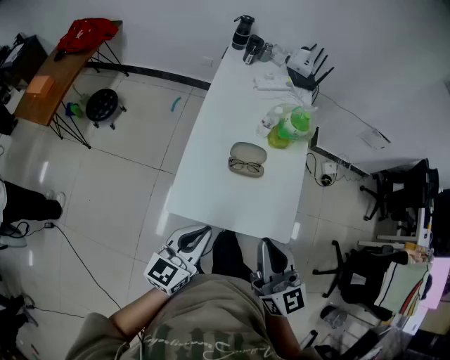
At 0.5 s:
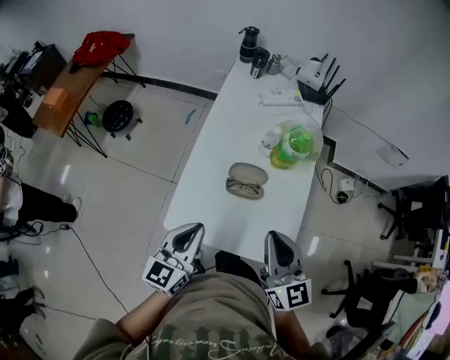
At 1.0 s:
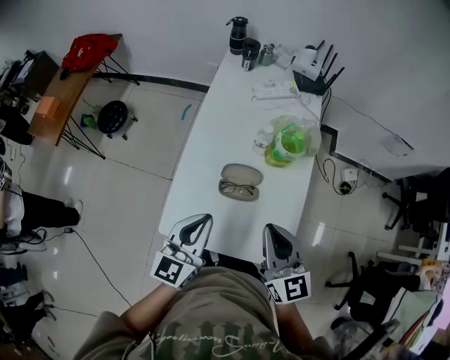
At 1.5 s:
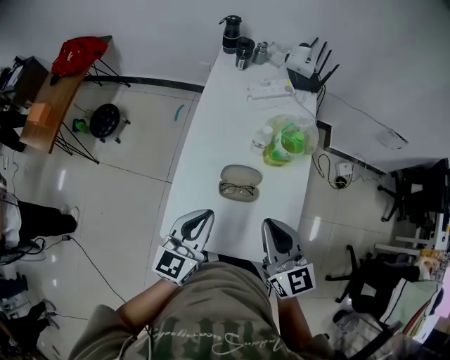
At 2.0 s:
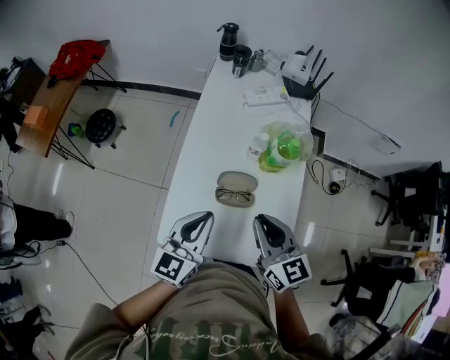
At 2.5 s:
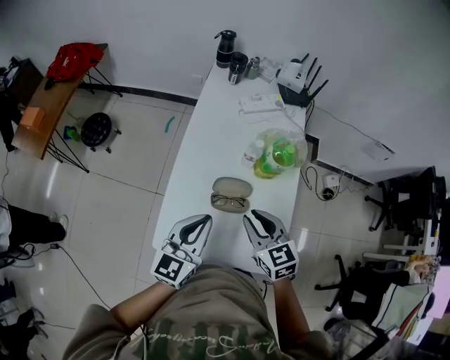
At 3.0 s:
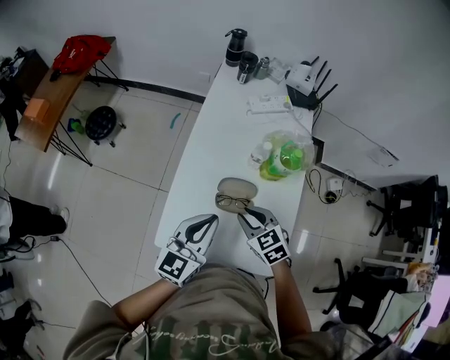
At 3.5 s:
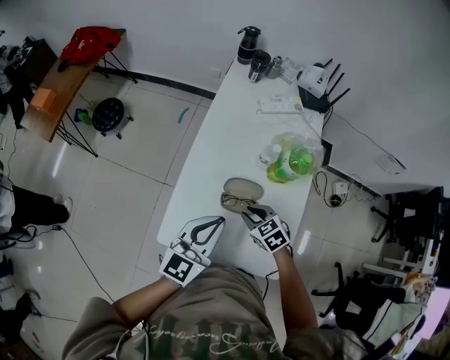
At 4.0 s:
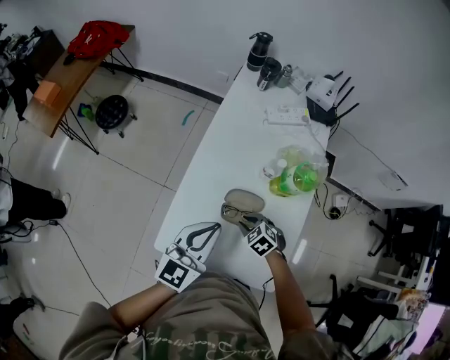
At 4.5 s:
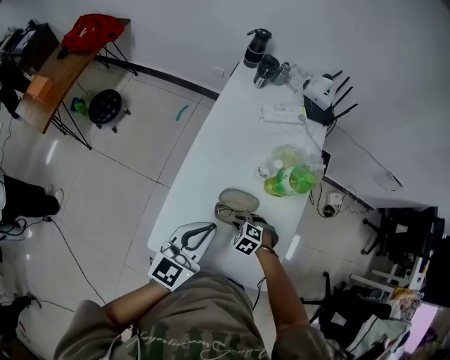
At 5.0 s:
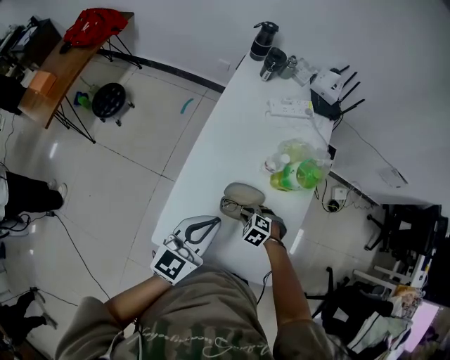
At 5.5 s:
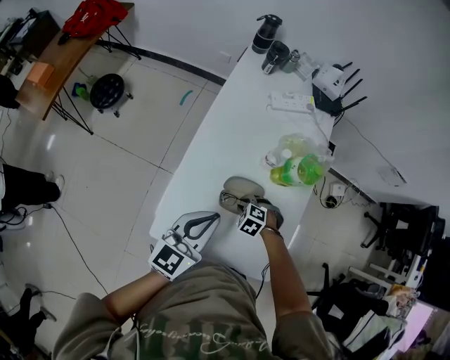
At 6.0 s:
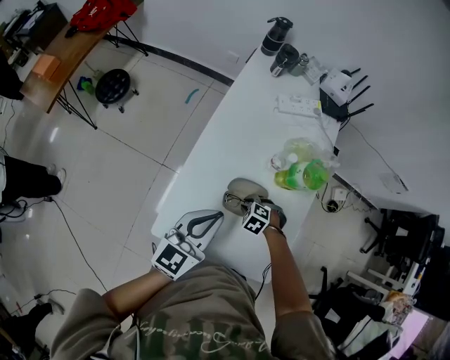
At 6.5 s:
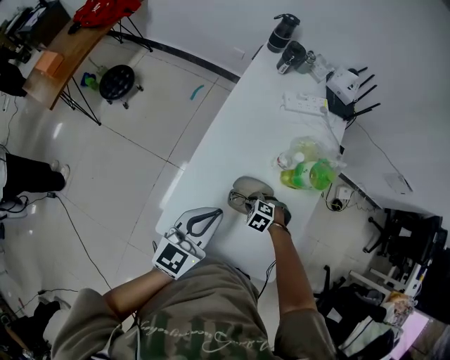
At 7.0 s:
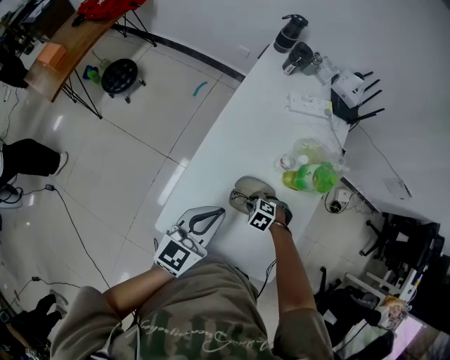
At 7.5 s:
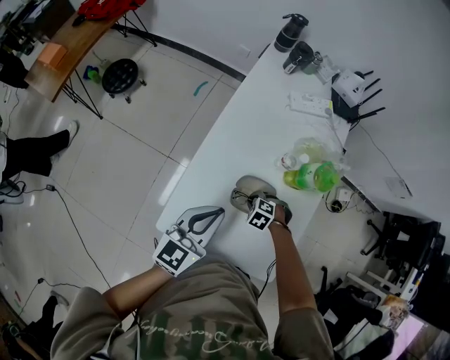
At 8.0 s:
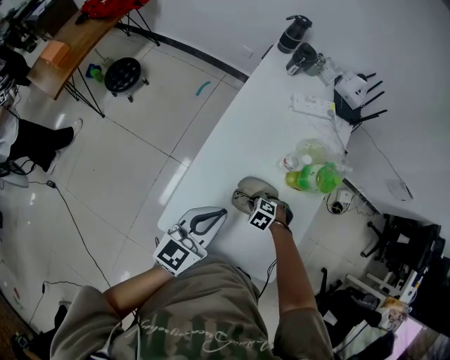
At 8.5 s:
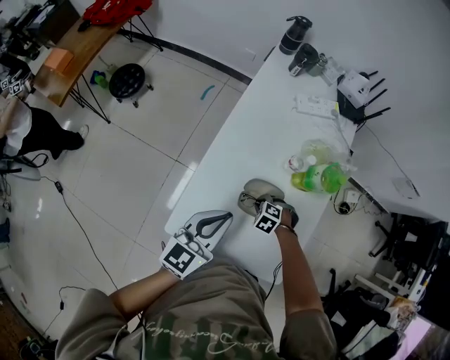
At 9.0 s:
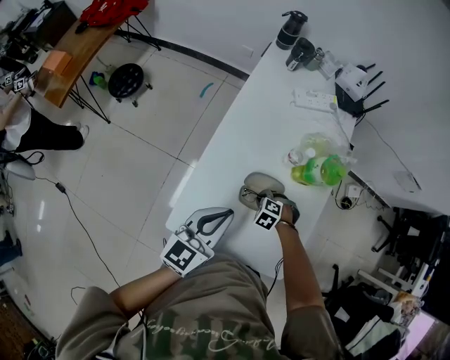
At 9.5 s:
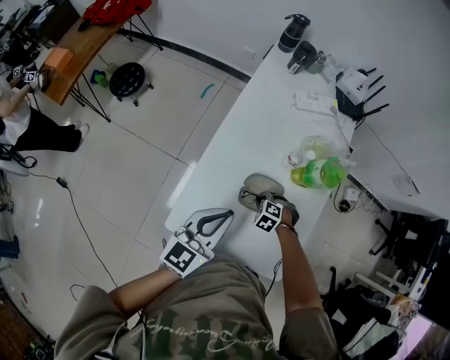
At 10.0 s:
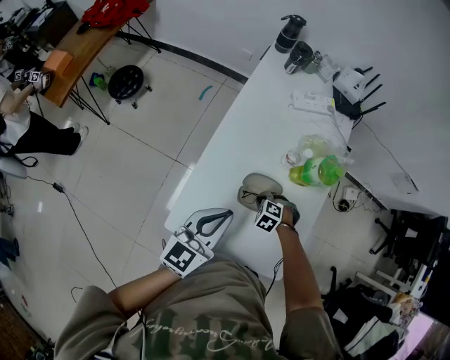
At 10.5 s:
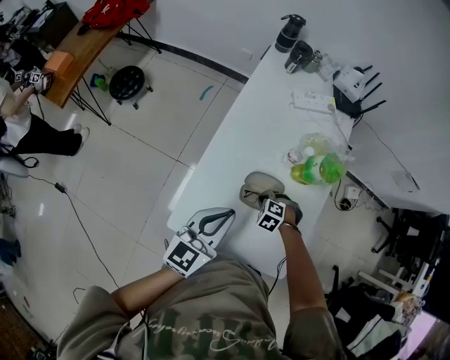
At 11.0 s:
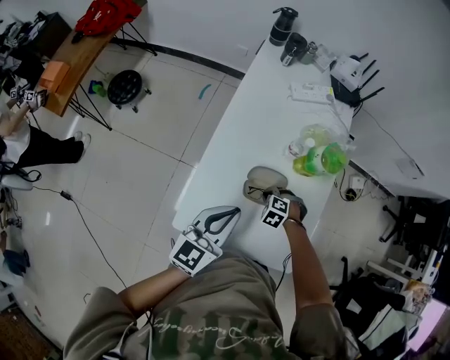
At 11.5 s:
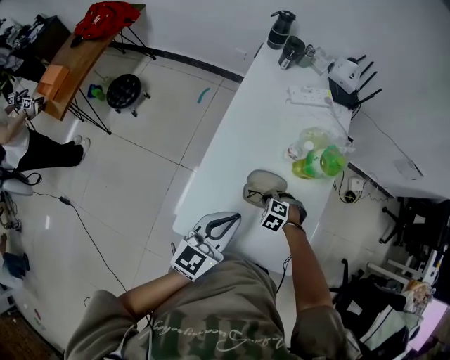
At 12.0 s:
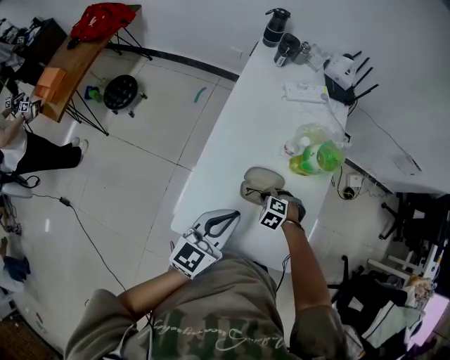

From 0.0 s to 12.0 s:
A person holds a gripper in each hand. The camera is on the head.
From 0.0 s to 2.0 s: The grippers both shift forward by about 20 cm.
From 2.0 s to 4.0 s: The right gripper travels downward by roughly 25 cm, and tilts its fingers about 50 degrees downward.
From 4.0 s to 6.0 s: The right gripper shifts about 5 cm downward, and turns by about 20 degrees.
From 6.0 s to 12.0 s: The grippers stay close to where they were, moving slightly.

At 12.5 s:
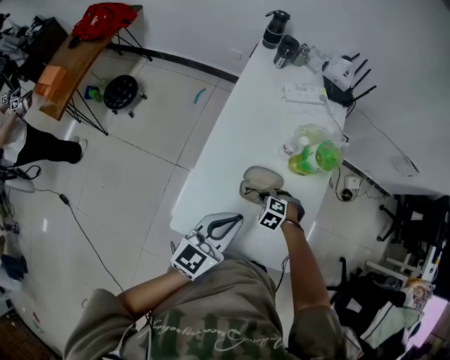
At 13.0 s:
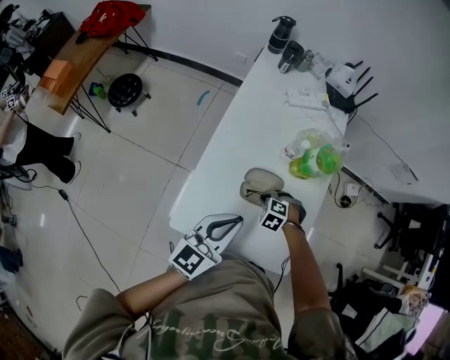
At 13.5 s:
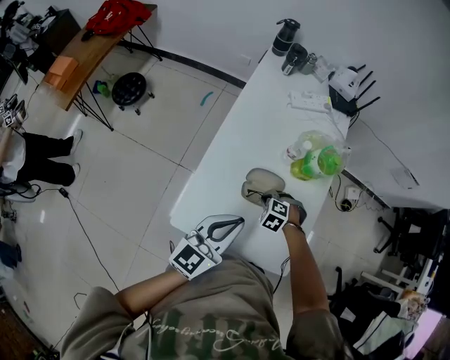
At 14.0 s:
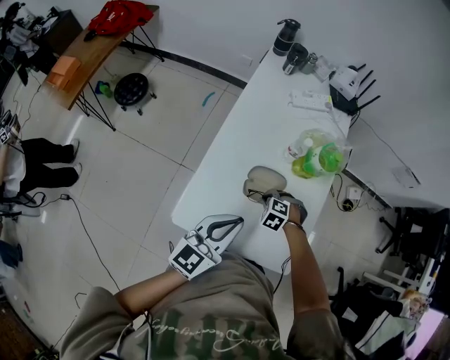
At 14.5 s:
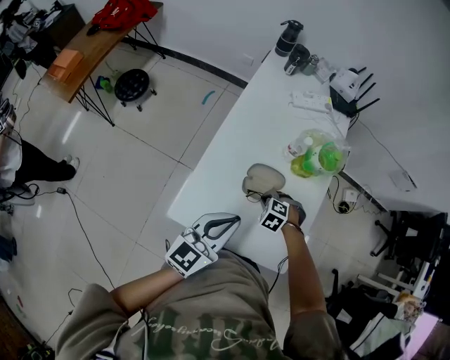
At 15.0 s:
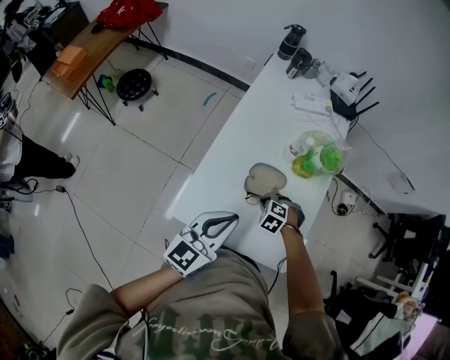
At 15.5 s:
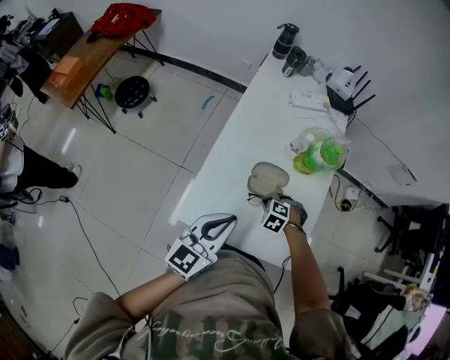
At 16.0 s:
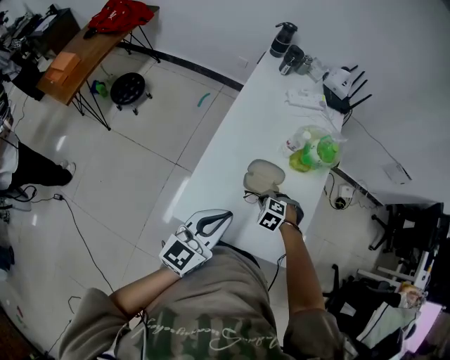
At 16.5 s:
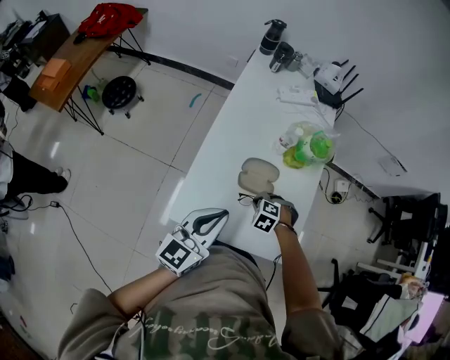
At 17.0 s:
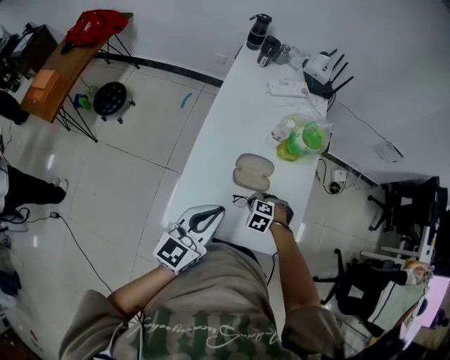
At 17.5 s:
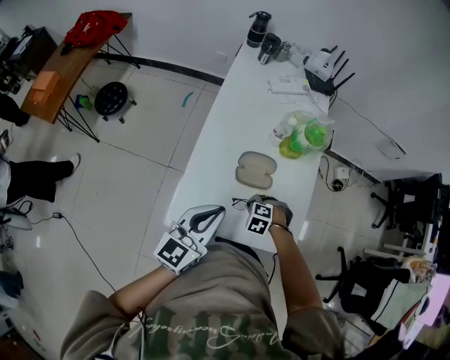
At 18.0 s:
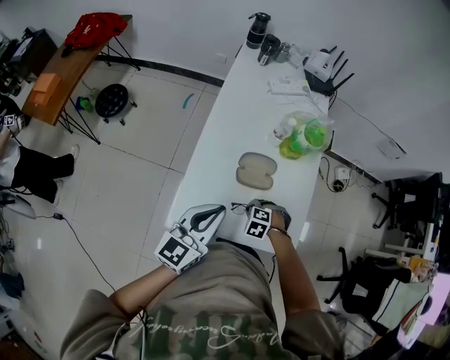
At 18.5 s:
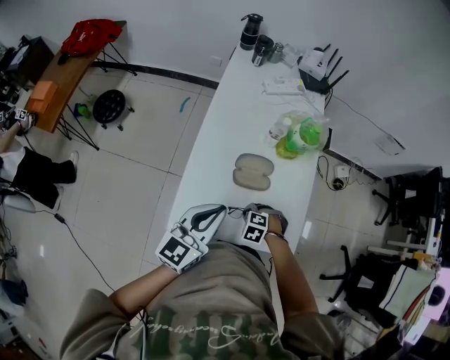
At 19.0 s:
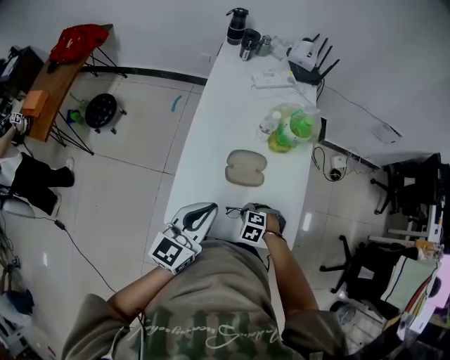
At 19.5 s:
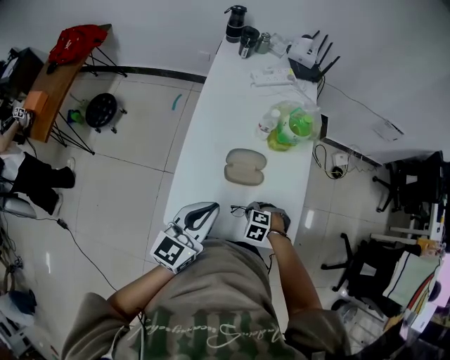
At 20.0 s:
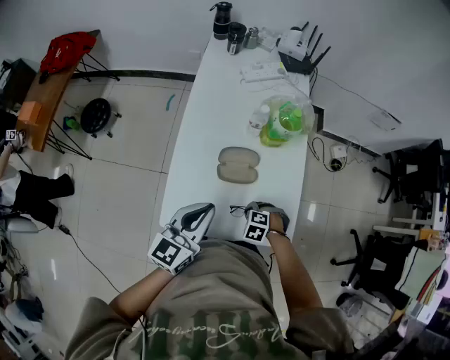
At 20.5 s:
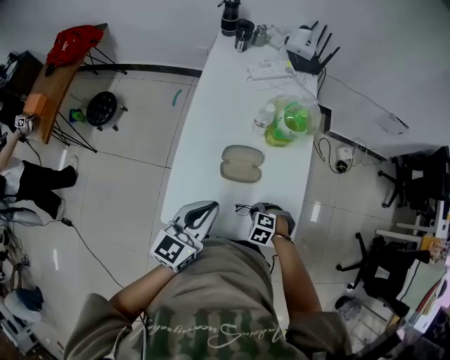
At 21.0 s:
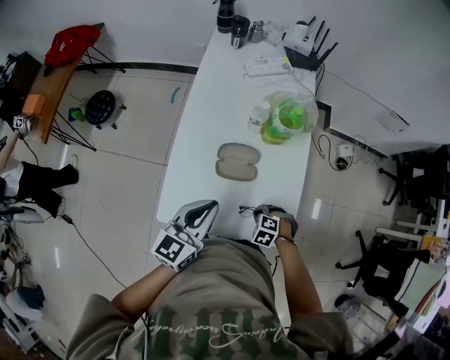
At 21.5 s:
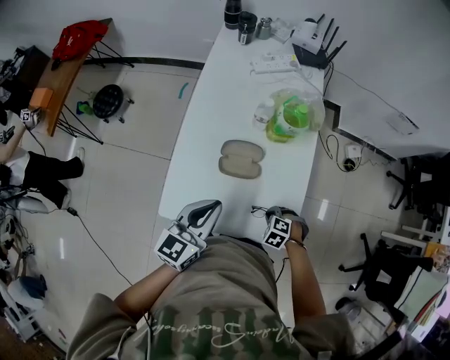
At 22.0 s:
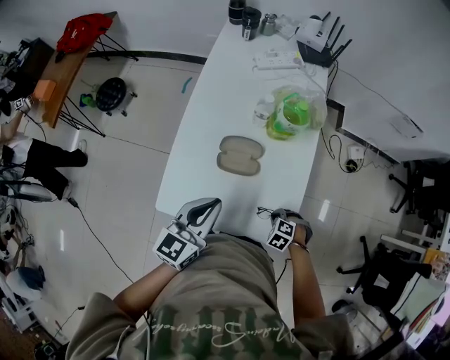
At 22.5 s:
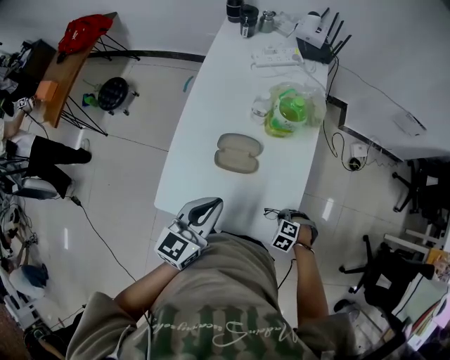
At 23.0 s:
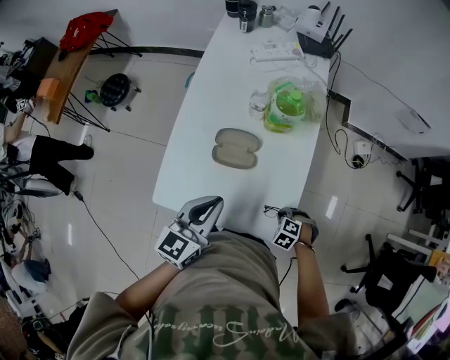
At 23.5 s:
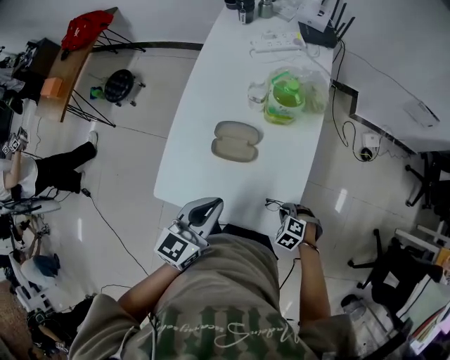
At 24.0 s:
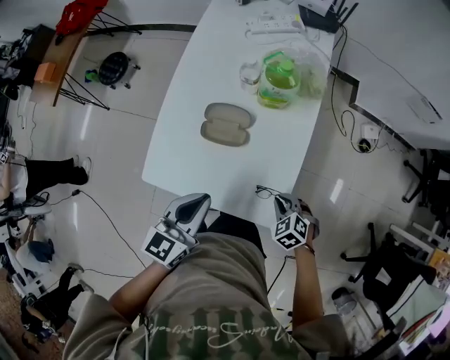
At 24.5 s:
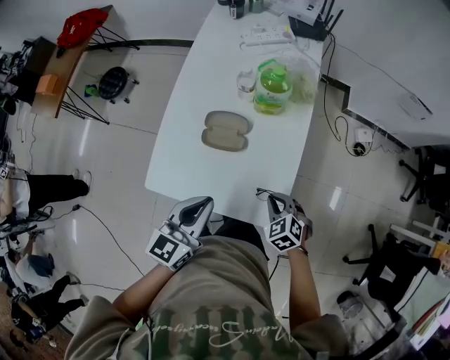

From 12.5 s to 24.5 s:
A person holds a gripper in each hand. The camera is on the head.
From 12.5 s to 14.5 s: The grippers make only small movements.
From 14.5 s to 16.5 s: The right gripper ends up some 5 cm from where it was.
From 16.5 s to 18.5 s: The right gripper changes place by some 5 cm.
From 18.5 s to 20.5 s: The left gripper changes place by about 5 cm. The right gripper shifts by roughly 5 cm.
From 20.5 s to 22.5 s: The left gripper shifts by about 5 cm. The right gripper shifts by approximately 15 cm.
From 22.5 s to 24.5 s: The right gripper moves upward, approximately 10 cm, and turns by about 40 degrees; the left gripper moves some 5 cm.

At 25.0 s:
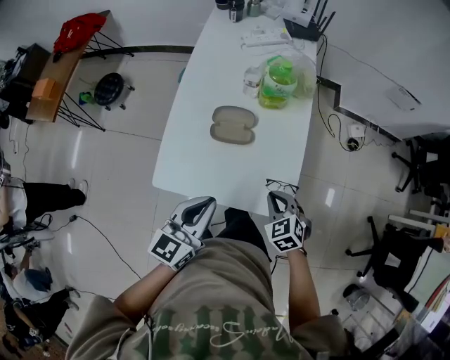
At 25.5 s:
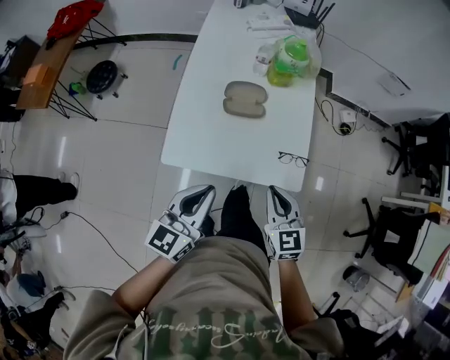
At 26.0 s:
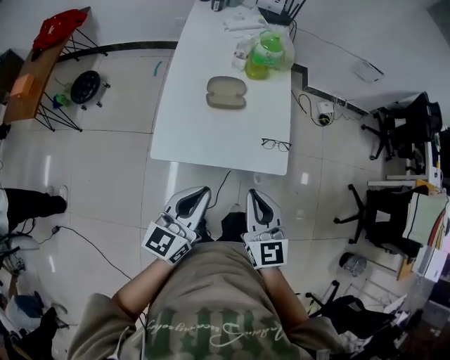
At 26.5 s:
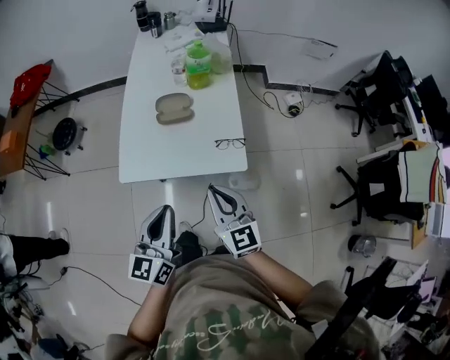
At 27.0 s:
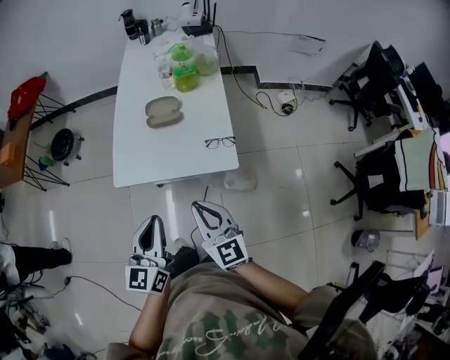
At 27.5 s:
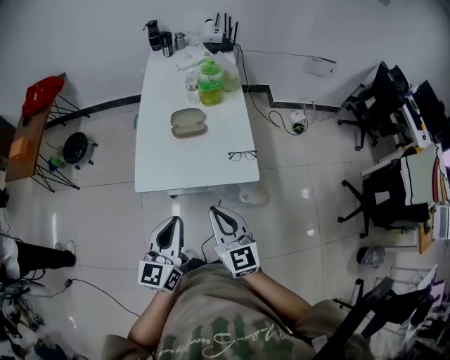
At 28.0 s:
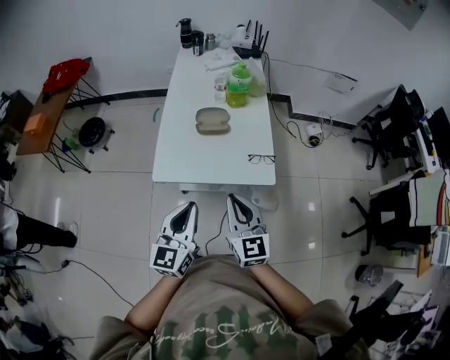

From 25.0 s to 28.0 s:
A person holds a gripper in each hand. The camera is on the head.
From 25.0 s to 26.5 s: The right gripper shifts approximately 25 cm backward and upward, and points its fingers roughly 40 degrees further upward, while the left gripper heads backward, covering approximately 20 cm.
From 26.5 s to 28.0 s: The right gripper travels to the left by roughly 5 cm.
